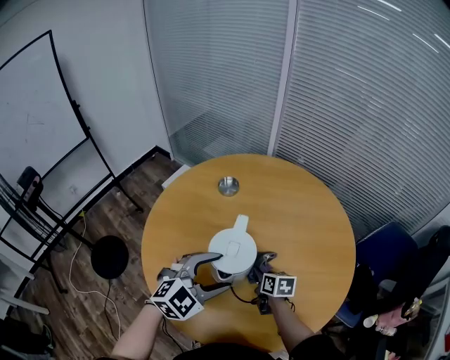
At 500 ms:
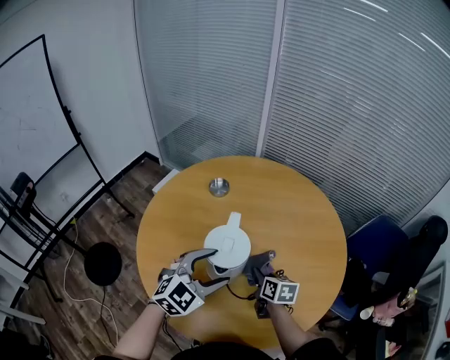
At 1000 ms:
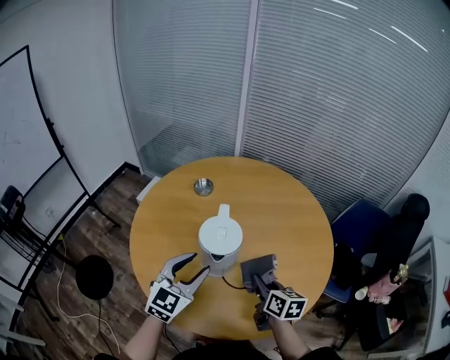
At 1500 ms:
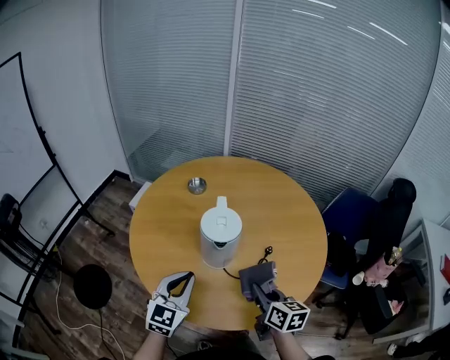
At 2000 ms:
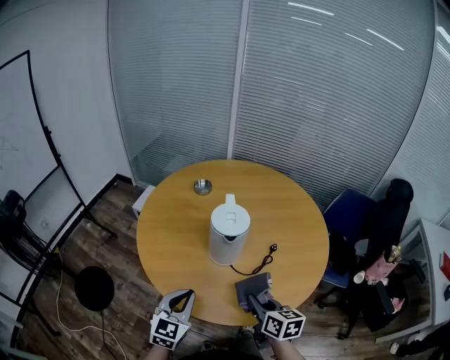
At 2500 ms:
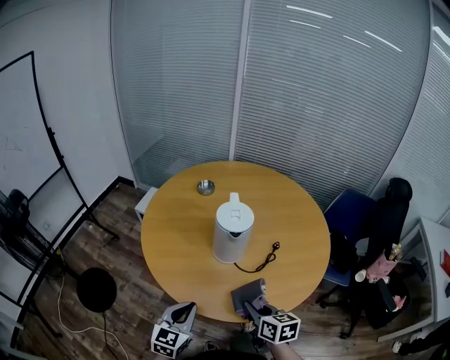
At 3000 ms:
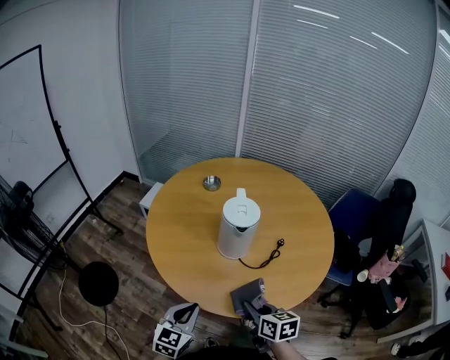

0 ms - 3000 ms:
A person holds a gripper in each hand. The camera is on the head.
0 ms - 1500 ms: The right gripper moves backward and upward, approximately 25 cm, and swivels some 20 degrees. The left gripper goes approximately 15 cm backward and to the left, rotates roughly 30 degrees, and closes up.
1500 ms - 3000 ms: The left gripper heads backward and downward, covering roughly 15 cm. The right gripper shifts about 15 cm backward and to the left.

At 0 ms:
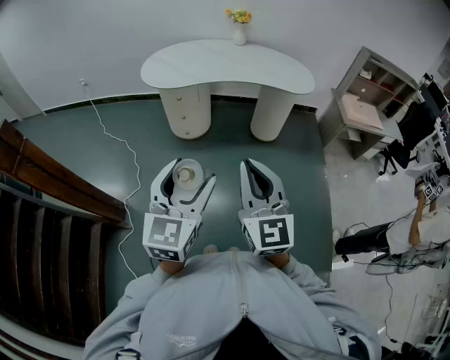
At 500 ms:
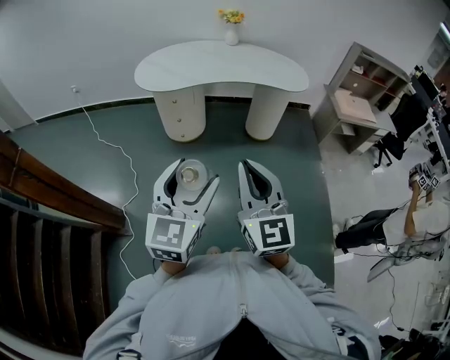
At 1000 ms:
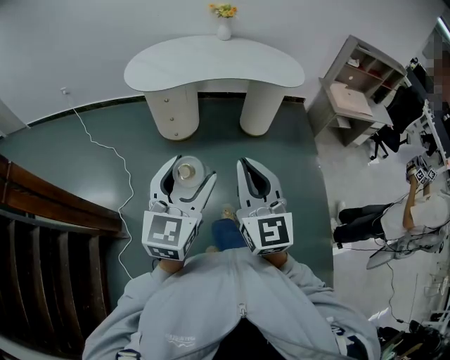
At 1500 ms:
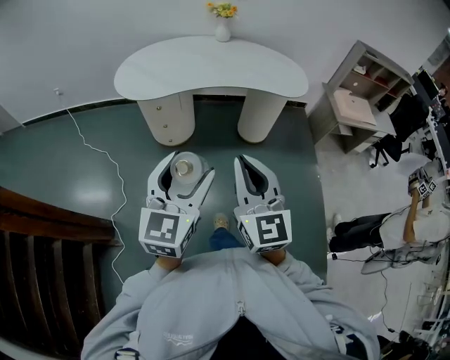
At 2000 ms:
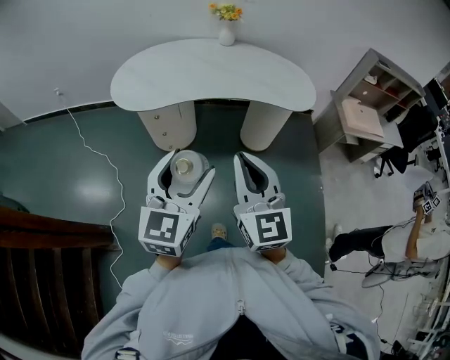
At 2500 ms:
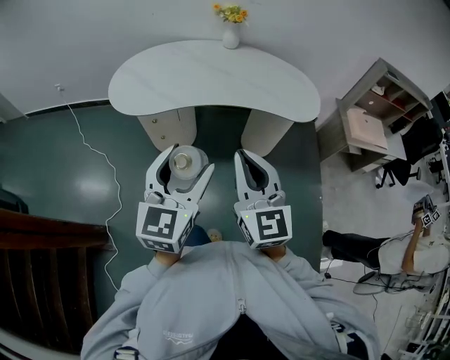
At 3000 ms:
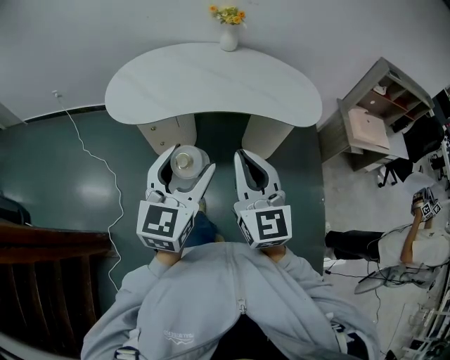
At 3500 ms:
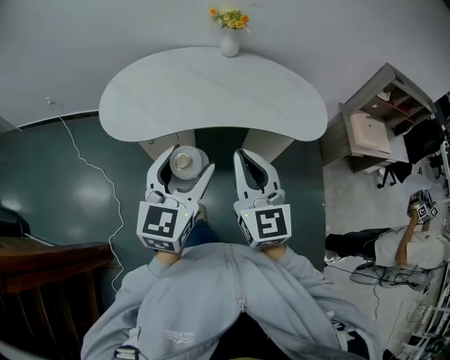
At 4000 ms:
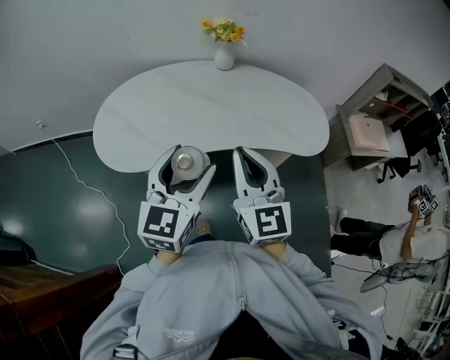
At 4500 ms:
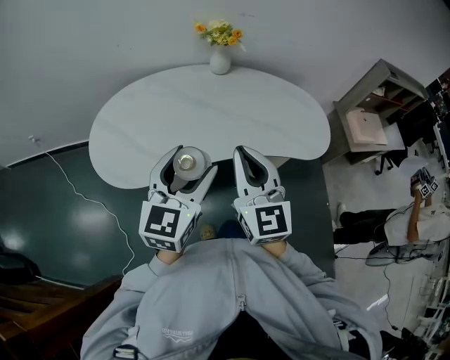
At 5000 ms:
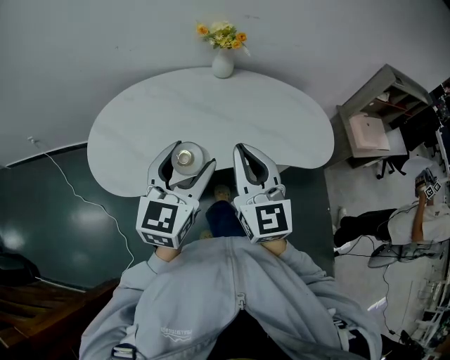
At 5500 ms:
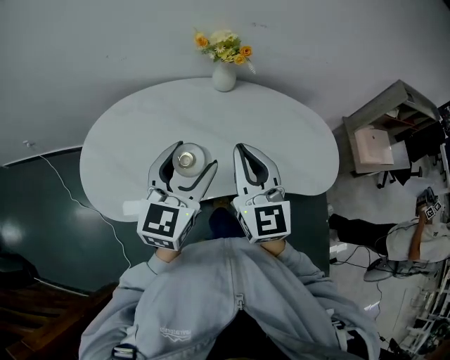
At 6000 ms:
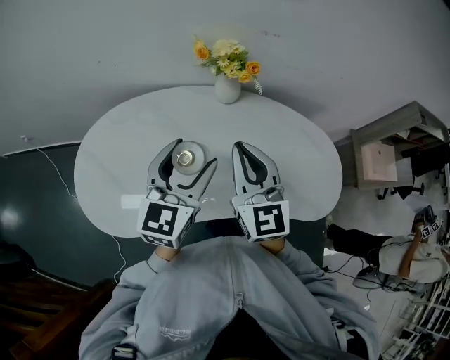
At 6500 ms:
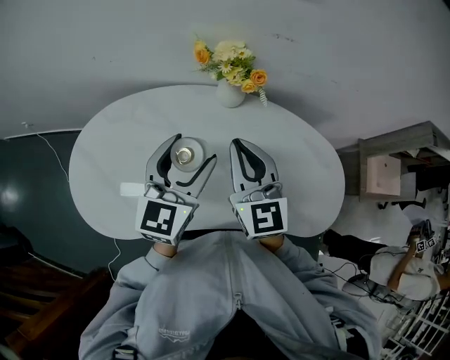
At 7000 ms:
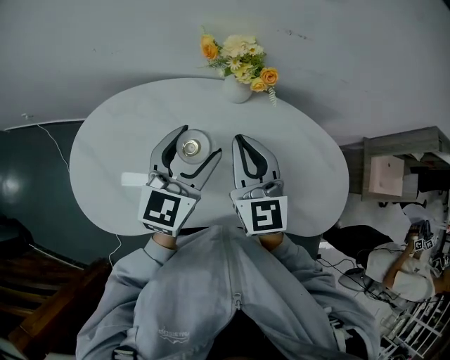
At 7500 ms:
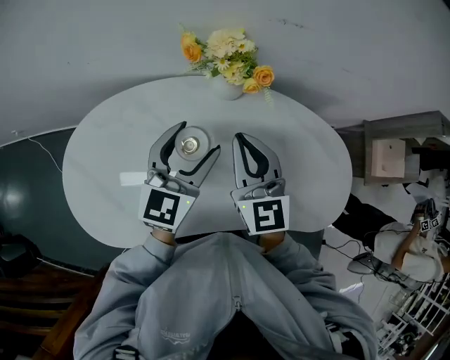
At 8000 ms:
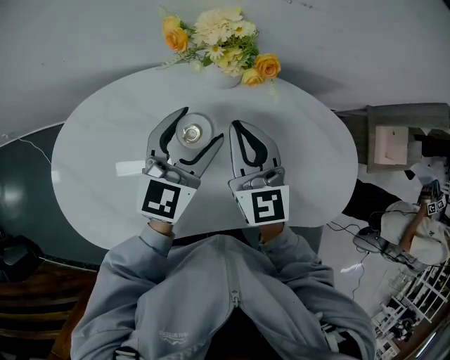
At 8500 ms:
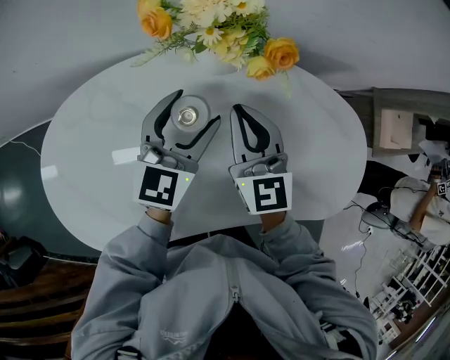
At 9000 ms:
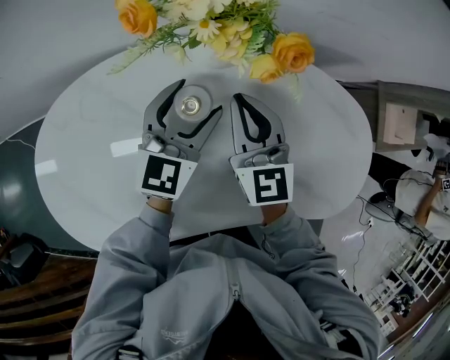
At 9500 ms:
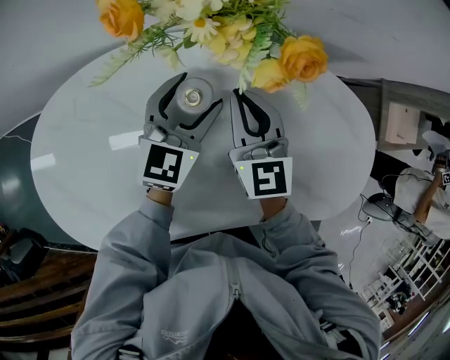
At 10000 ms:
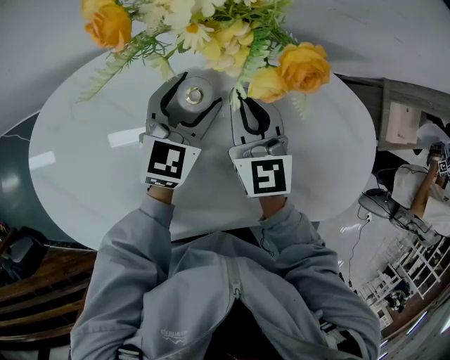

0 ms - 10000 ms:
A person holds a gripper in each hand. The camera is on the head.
0 ms - 2000 ms: The two grippers go roughly 25 cm forward.
2000 ms - 4000 ms: Both grippers move forward, some 30 cm.
4000 ms - 6000 ms: Both grippers move forward, some 30 cm.
6000 ms - 8000 ms: The two grippers go about 20 cm forward and downward.
8000 ms - 10000 ms: The two grippers go roughly 15 cm downward and forward.

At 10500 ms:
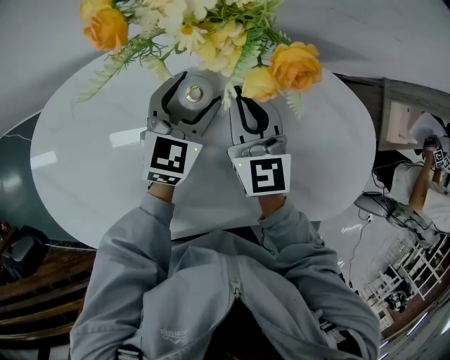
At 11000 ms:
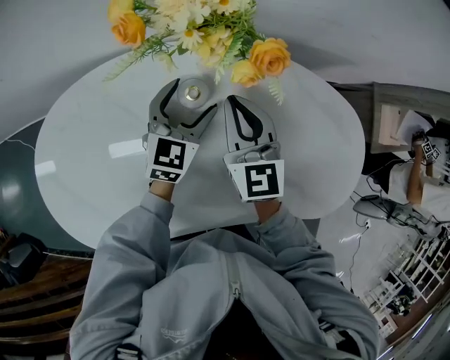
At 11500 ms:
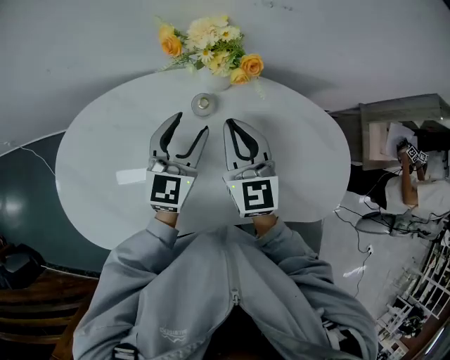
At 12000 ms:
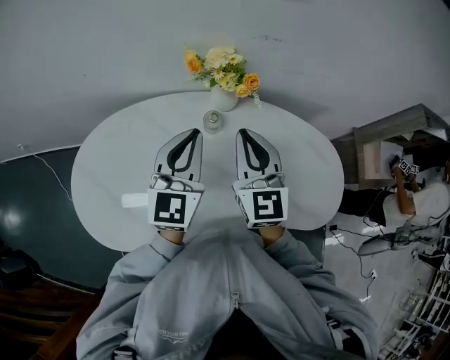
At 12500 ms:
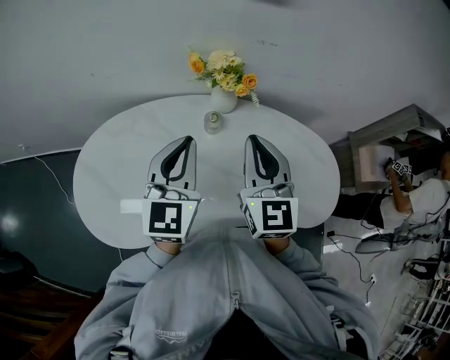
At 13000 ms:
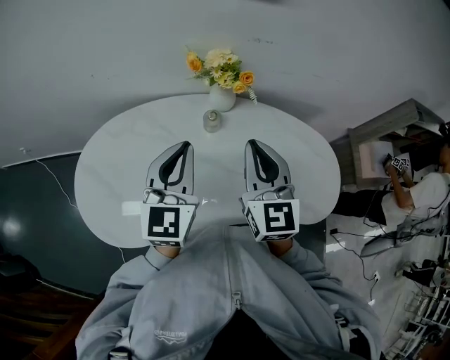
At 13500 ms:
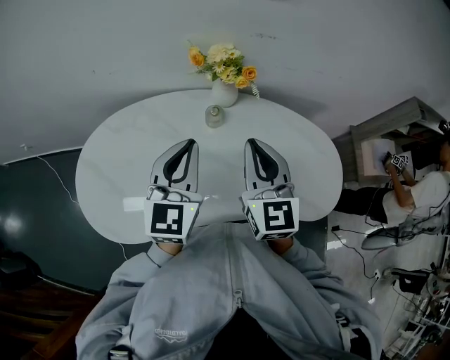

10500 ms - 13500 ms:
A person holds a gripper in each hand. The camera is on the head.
10500 ms - 12000 ms: Both grippers travel together upward and backward, roughly 25 cm. The left gripper swivels some 30 degrees, and closes.
12000 ms - 13500 ms: Both grippers move backward, about 5 cm.

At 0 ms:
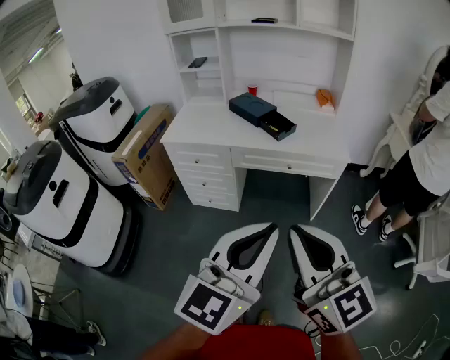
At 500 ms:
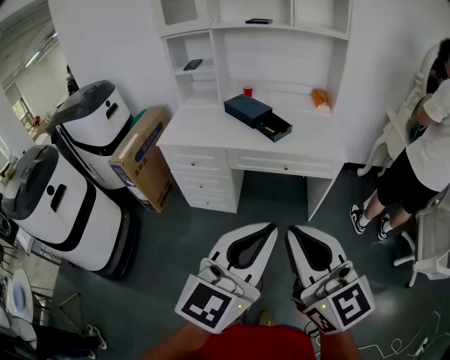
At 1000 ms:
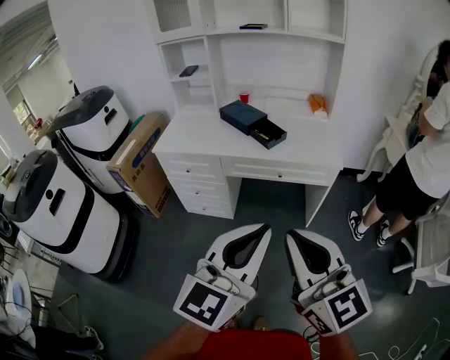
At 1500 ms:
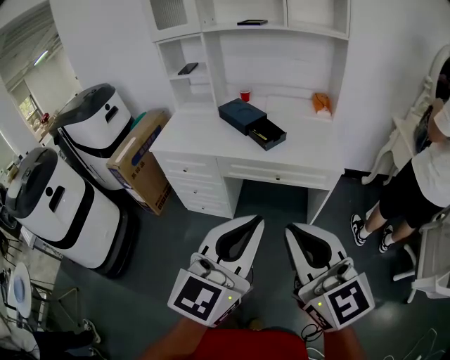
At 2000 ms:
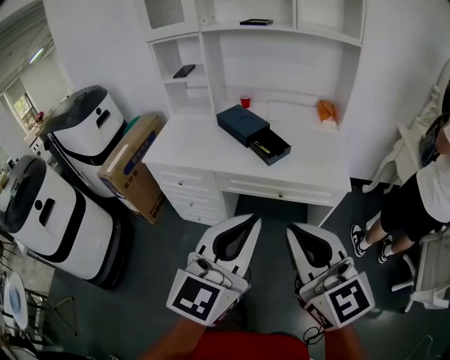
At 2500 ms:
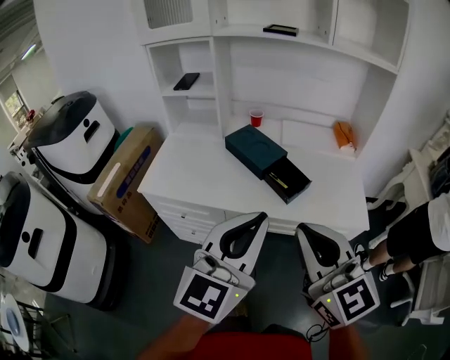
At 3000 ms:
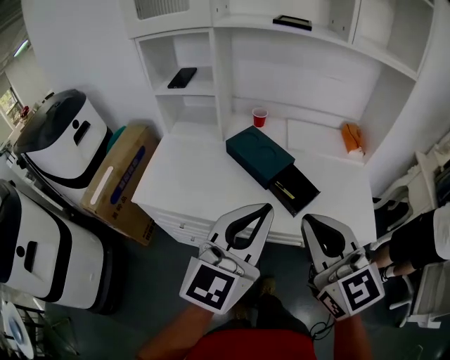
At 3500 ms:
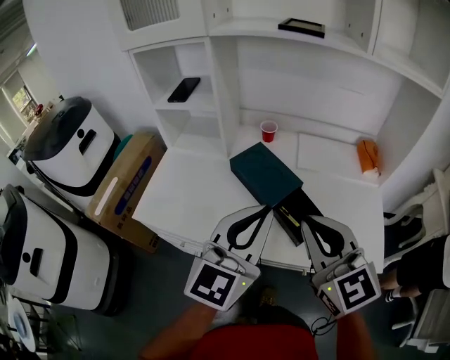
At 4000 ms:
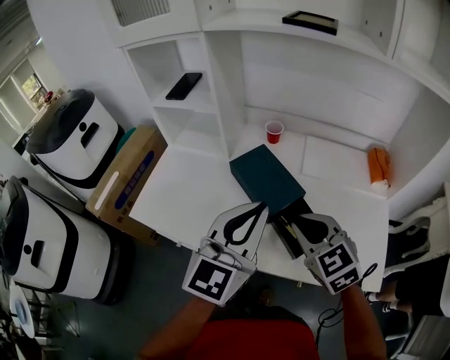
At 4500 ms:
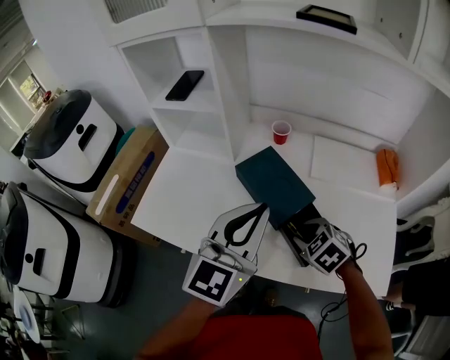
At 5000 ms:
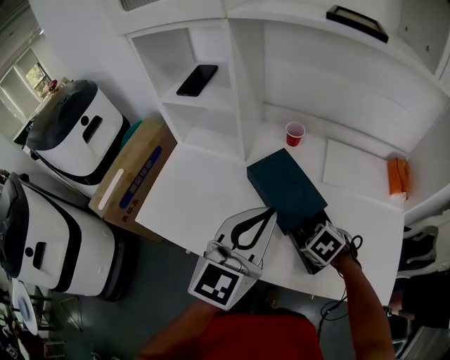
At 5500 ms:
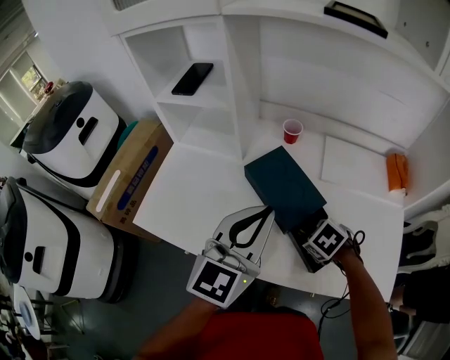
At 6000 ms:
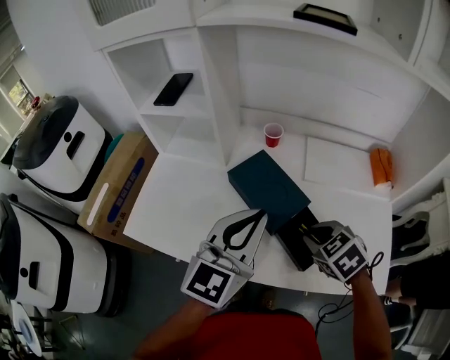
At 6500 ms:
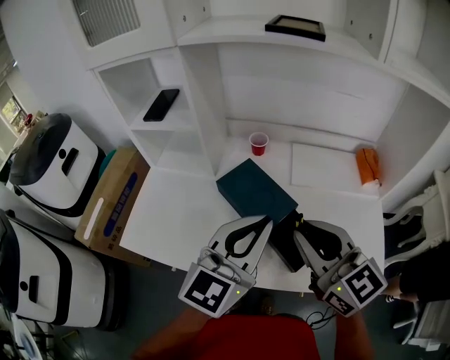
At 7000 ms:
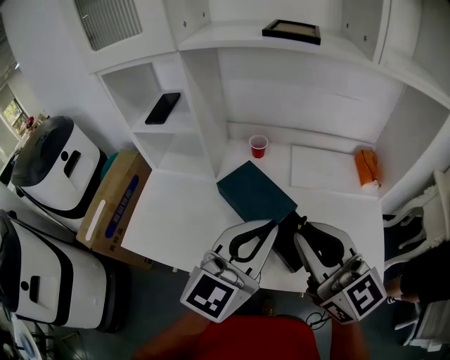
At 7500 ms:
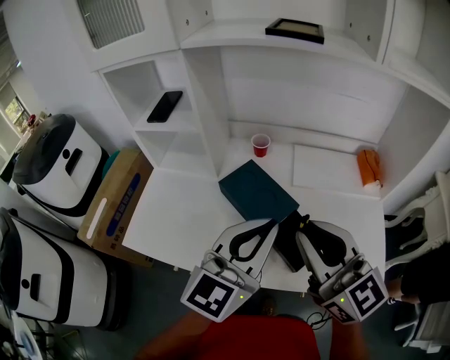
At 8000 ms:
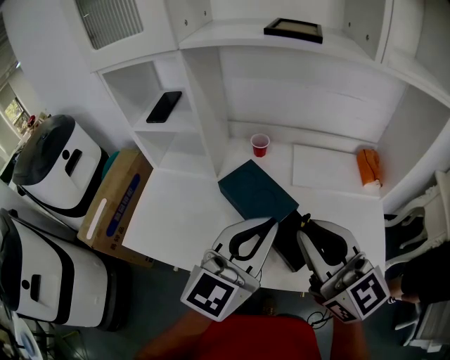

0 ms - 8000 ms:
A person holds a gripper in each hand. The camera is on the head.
0 ms - 2000 ms: Both grippers move forward, roughly 15 cm.
2000 ms - 4000 ms: The pair of grippers is taken forward, roughly 50 cm. The right gripper angles its fingers downward, by some 30 degrees.
4000 ms - 6000 ms: The right gripper heads downward, covering approximately 10 cm, and swivels roughly 30 degrees; the left gripper changes place by roughly 5 cm.
6000 ms - 8000 ms: The left gripper shifts by roughly 5 cm. The right gripper heads upward, covering roughly 20 cm, and points its fingers some 60 degrees further upward.

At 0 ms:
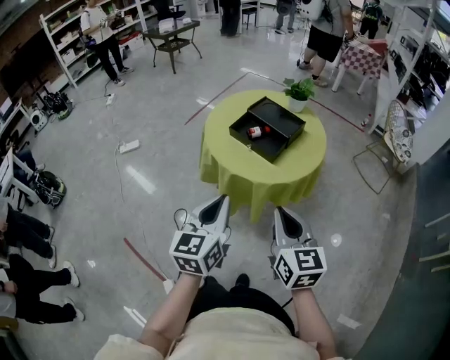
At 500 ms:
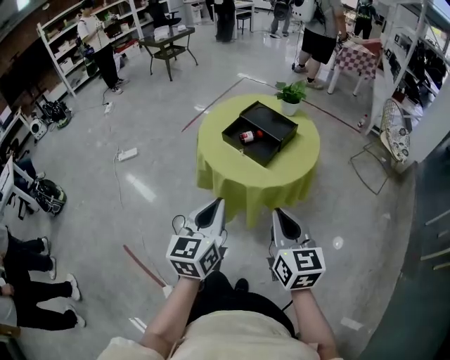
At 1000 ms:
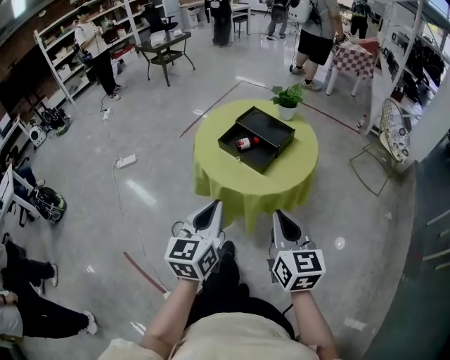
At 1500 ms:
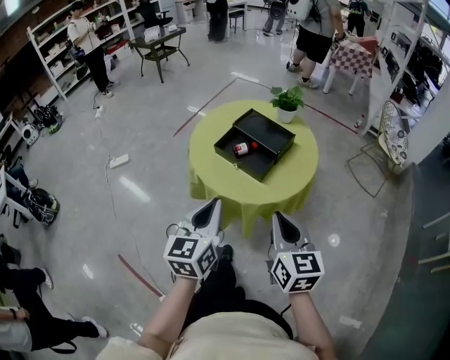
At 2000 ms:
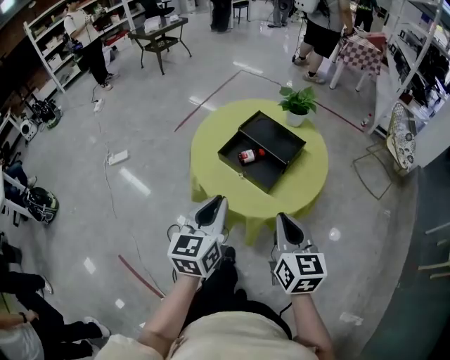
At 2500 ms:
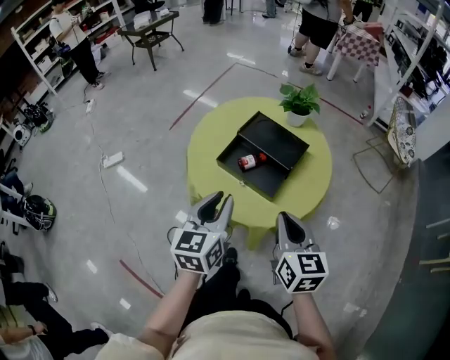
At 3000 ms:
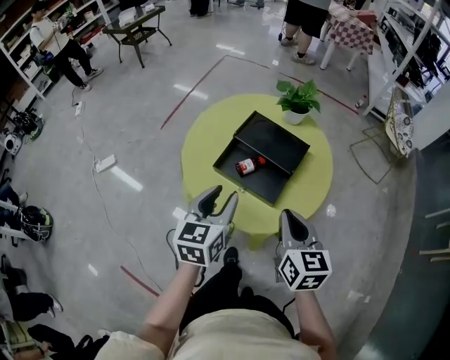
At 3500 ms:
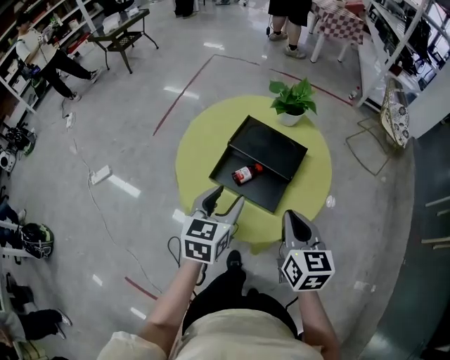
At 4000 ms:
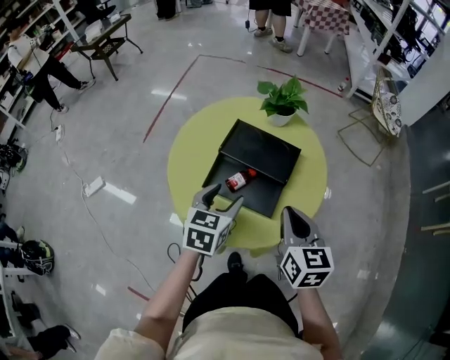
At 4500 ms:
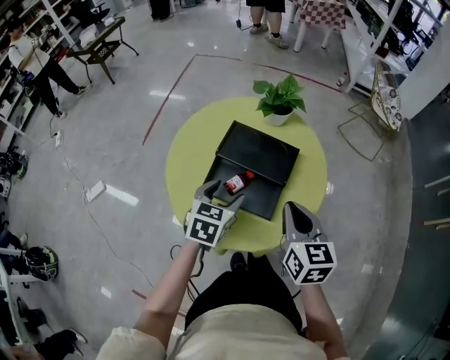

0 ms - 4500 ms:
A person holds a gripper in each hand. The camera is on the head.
0 ms - 2000 ms: Both grippers travel together forward, approximately 15 cm.
2000 ms - 4500 ms: The left gripper travels forward and downward by some 25 cm, changes its angle by some 40 degrees, and opens up. The right gripper heads forward, covering approximately 15 cm.
